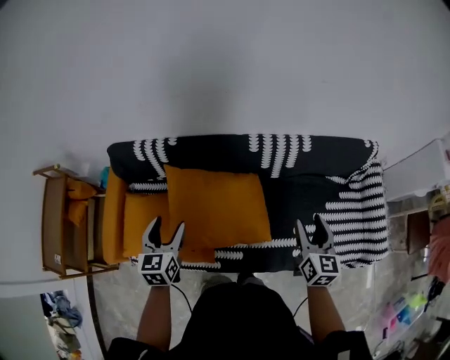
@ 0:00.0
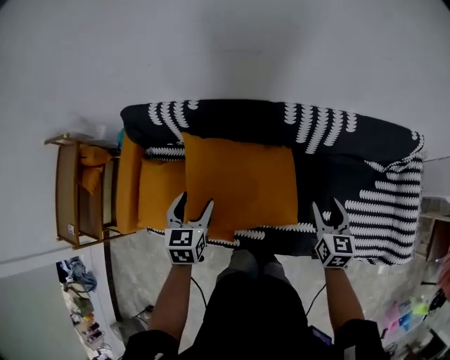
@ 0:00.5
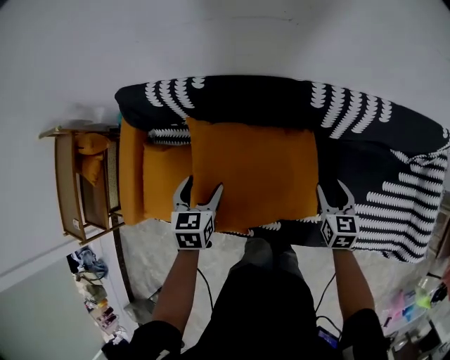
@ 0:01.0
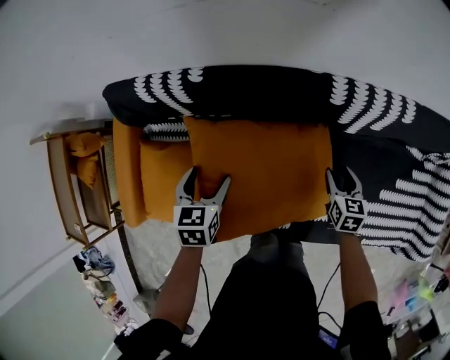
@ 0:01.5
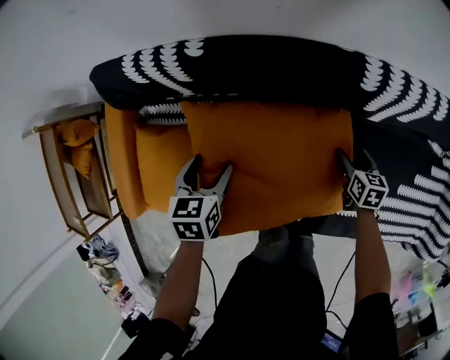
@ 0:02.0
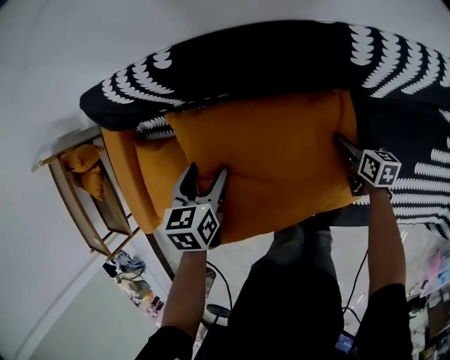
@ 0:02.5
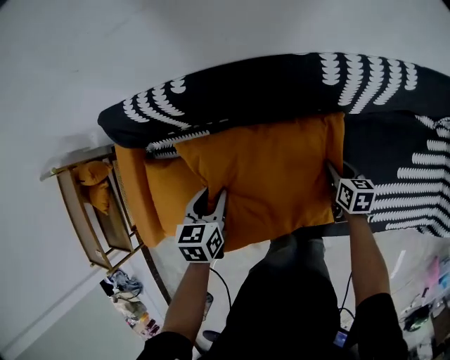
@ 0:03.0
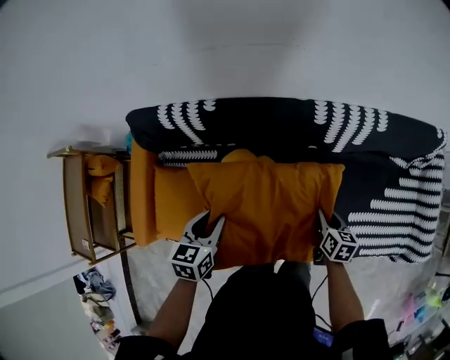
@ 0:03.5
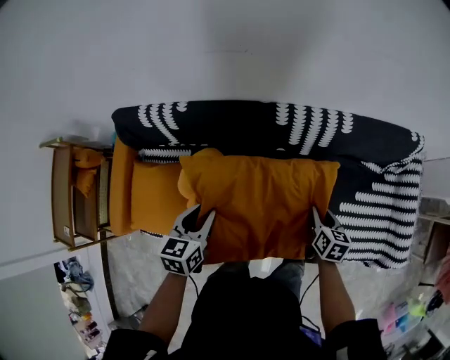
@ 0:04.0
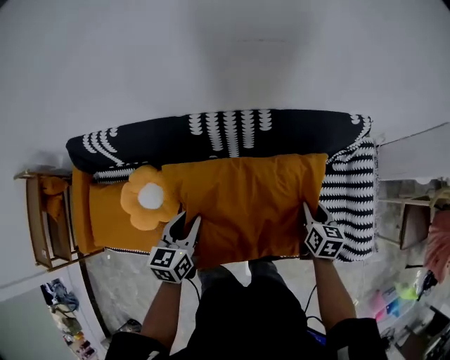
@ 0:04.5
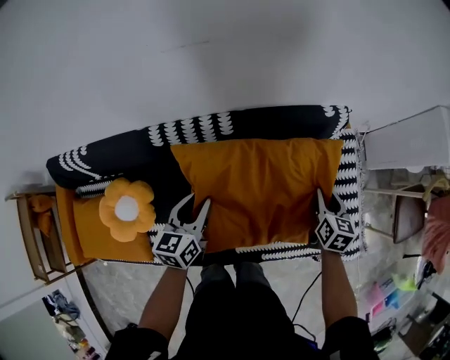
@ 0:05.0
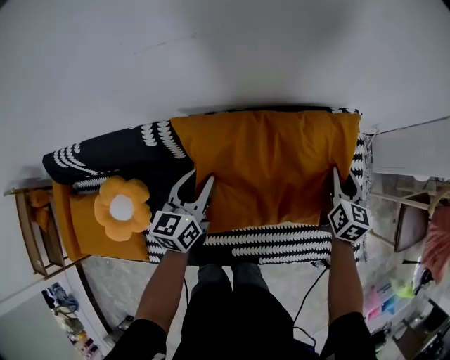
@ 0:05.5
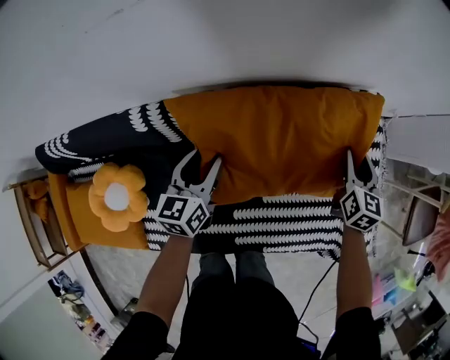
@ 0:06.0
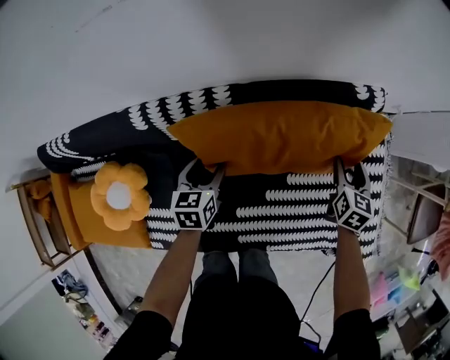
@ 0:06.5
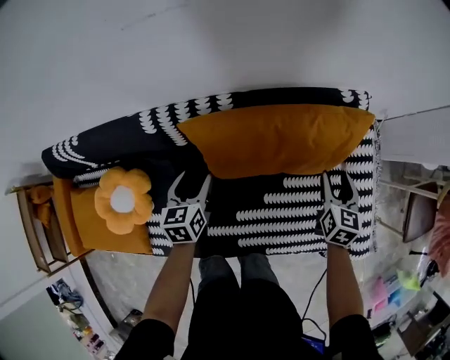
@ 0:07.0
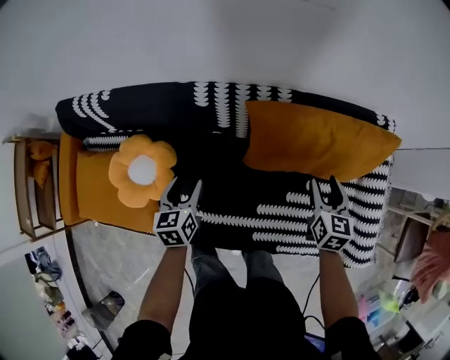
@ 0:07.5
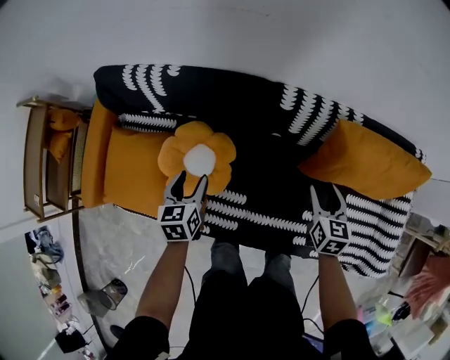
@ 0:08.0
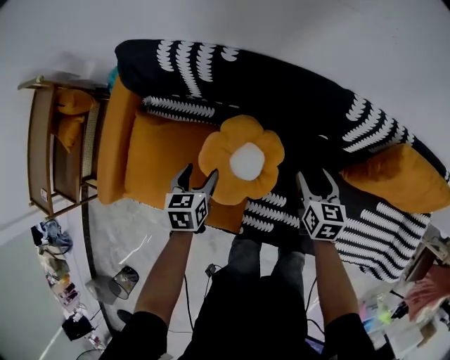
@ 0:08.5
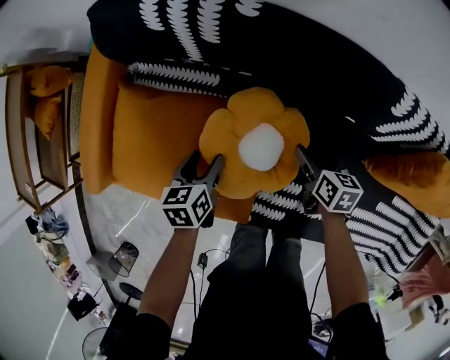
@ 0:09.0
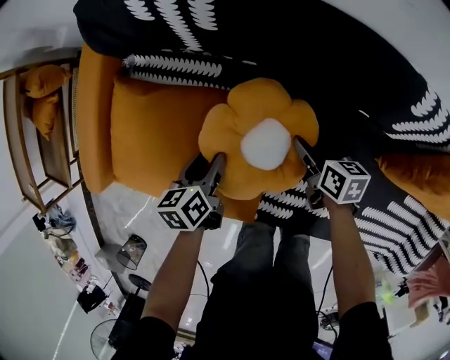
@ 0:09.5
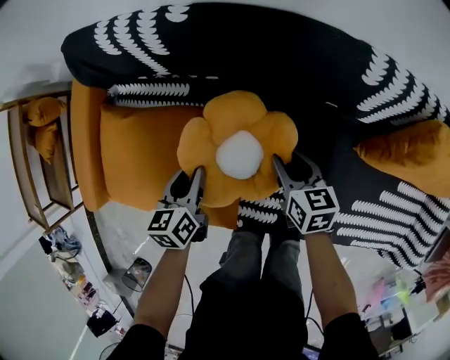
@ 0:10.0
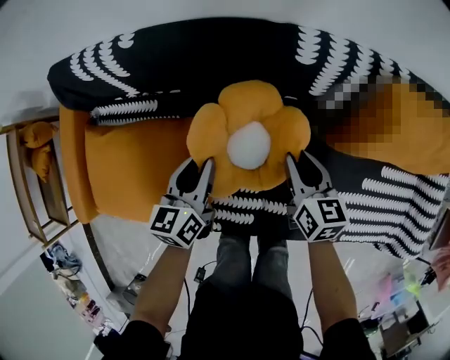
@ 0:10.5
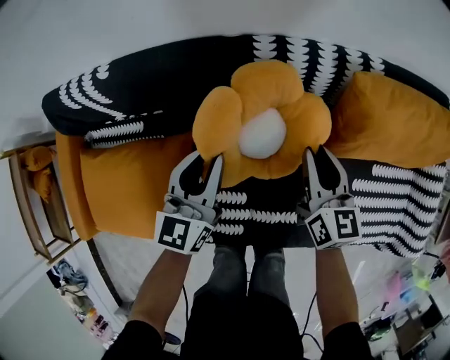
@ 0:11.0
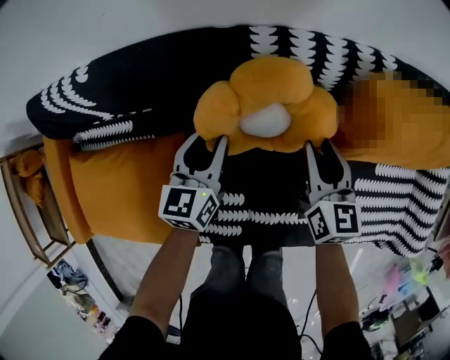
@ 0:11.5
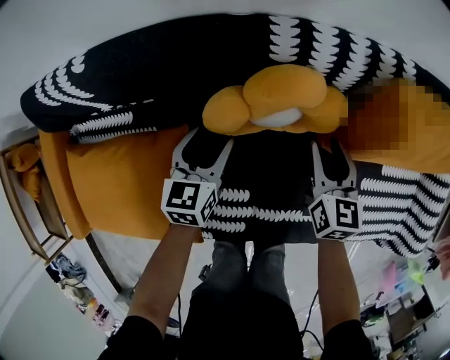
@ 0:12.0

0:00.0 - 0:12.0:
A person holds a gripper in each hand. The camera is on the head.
0:00.0 - 0:02.0: The right gripper heads downward, covering roughly 40 cm, and tilts its fingers approximately 30 degrees downward. Meanwhile the left gripper is displaced downward and forward by some 30 cm, and points its fingers roughly 30 degrees further downward.
0:02.0 - 0:04.0: The right gripper shifts about 25 cm upward, backward and to the right, and closes. The left gripper goes about 25 cm upward, to the right and backward, rotates some 20 degrees, and closes.
0:04.0 - 0:06.0: The pair of grippers is taken to the right and forward, approximately 50 cm. The right gripper changes its angle by some 30 degrees.
0:06.0 - 0:08.0: The two grippers travel together, roughly 50 cm. The left gripper changes its angle by about 30 degrees. The right gripper swivels roughly 30 degrees.
0:08.0 - 0:10.0: The right gripper moves to the left and downward, some 30 cm, and changes its angle by about 30 degrees; the left gripper heads downward and to the left, covering roughly 15 cm.
0:10.0 - 0:12.0: The right gripper goes upward and returns, some 10 cm each way, and turns by roughly 30 degrees, while the left gripper travels upward and back again, about 10 cm each way, changes its angle by approximately 30 degrees, and opens its fingers.

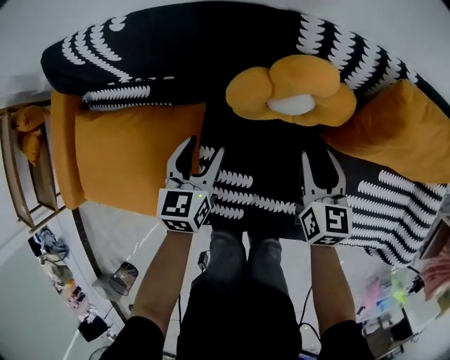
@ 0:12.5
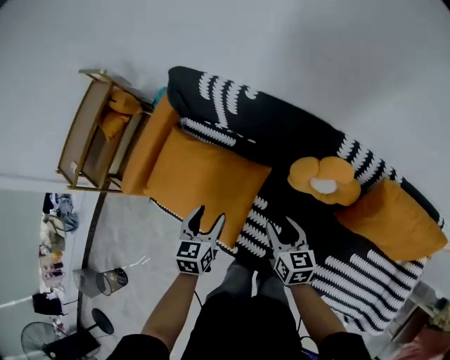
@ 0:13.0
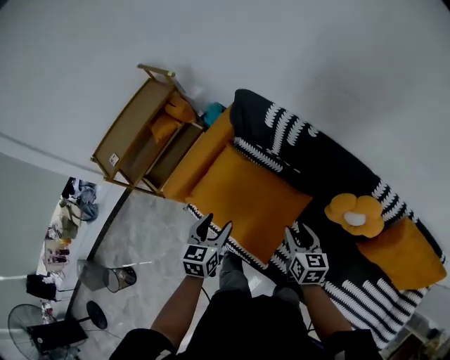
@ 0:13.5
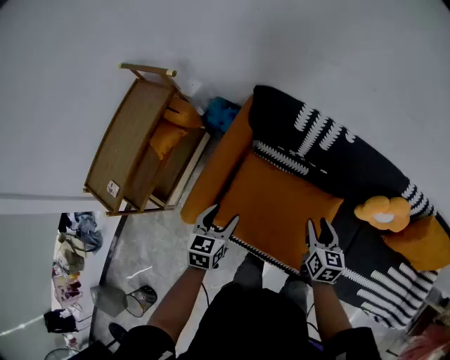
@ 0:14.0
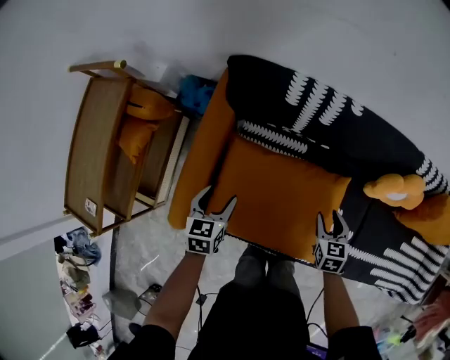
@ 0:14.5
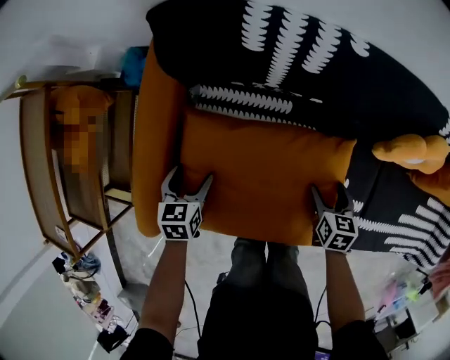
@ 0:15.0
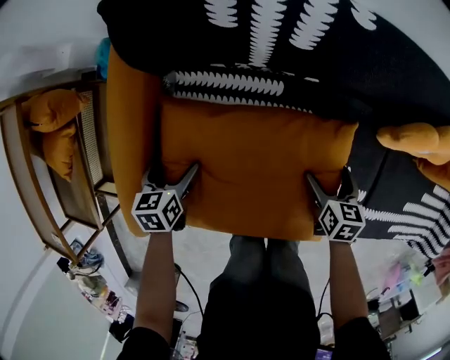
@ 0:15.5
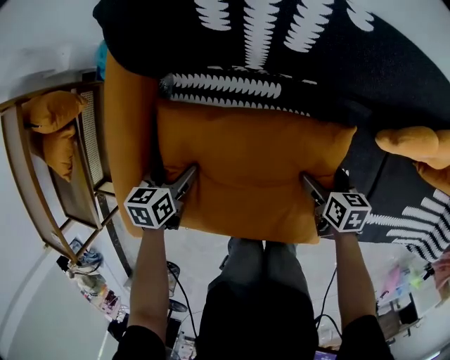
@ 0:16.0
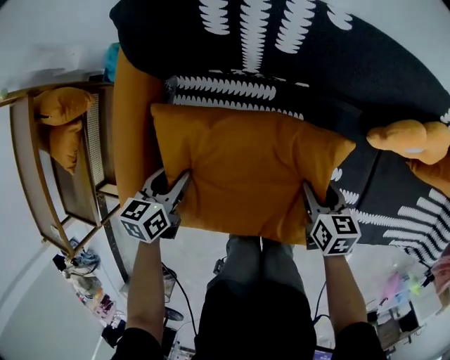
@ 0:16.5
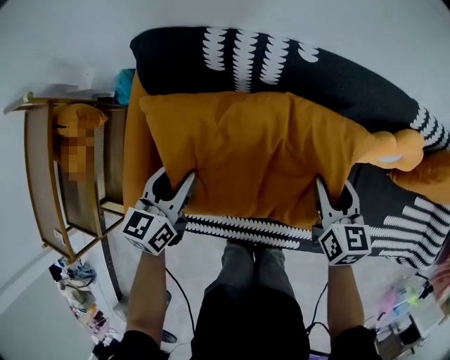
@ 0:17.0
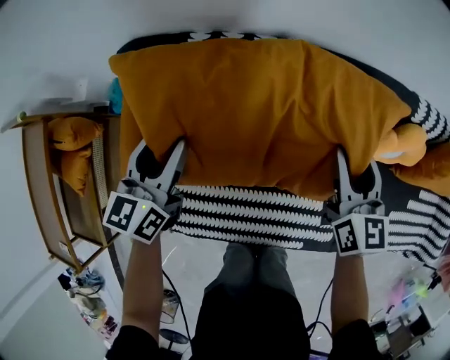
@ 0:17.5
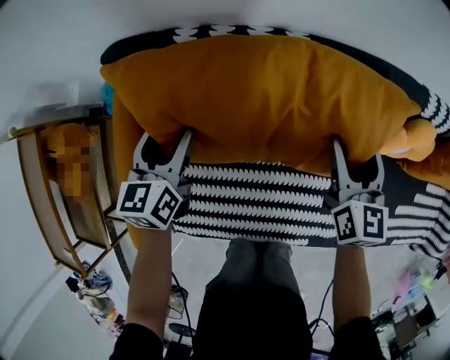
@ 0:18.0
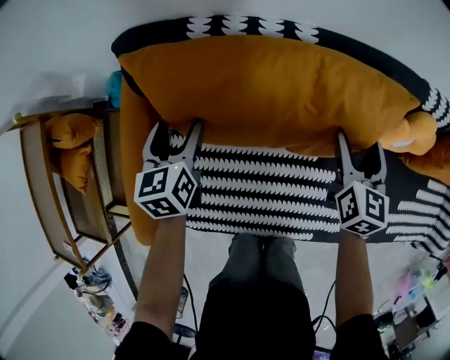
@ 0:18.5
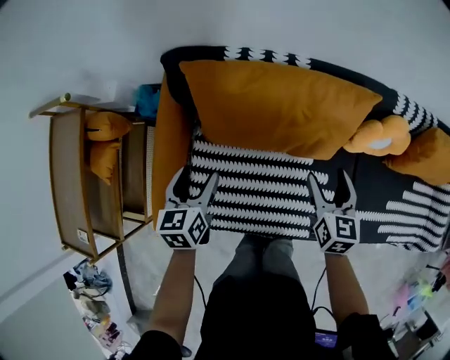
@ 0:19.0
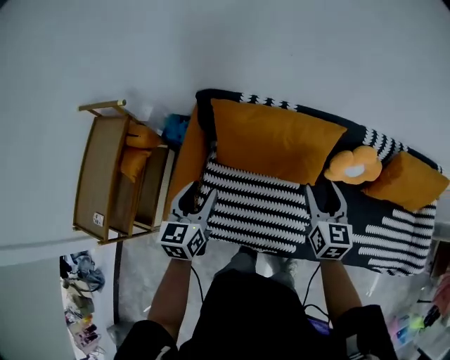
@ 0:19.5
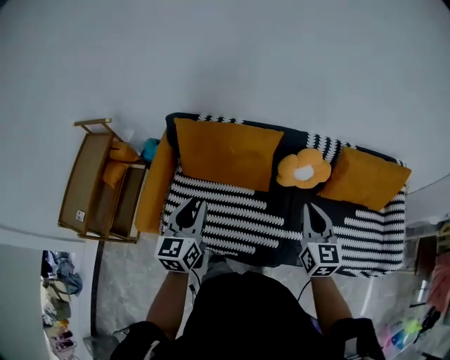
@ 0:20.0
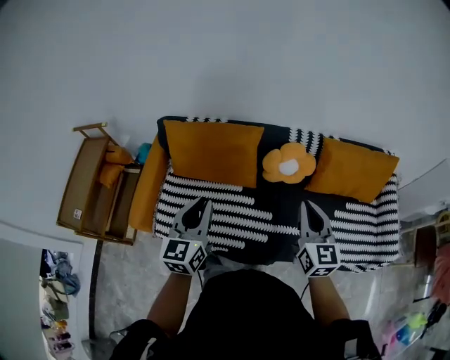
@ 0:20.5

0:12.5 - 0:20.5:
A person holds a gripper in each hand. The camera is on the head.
0:12.5 - 0:14.5: The two grippers travel together, approximately 50 cm. The right gripper turns by some 20 degrees.
0:14.5 - 0:16.5: Both grippers travel together downward, approximately 10 cm. The right gripper rotates approximately 20 degrees, and opens, then closes again.
0:16.5 - 0:18.5: Both grippers move forward and upward, some 20 cm. The left gripper turns by approximately 30 degrees, and opens up. The right gripper turns by about 40 degrees.
0:18.5 - 0:20.5: Both grippers move upward, backward and to the right, some 50 cm. The left gripper rotates about 30 degrees, and closes up; the right gripper swivels roughly 30 degrees, and closes its fingers.

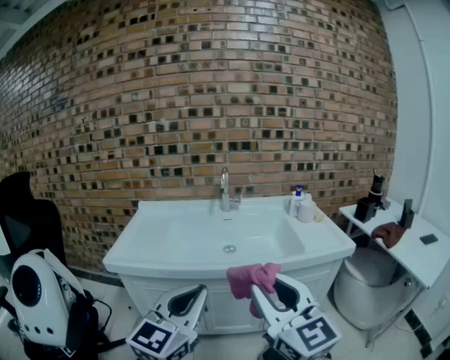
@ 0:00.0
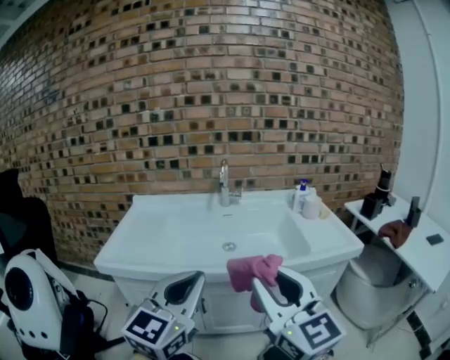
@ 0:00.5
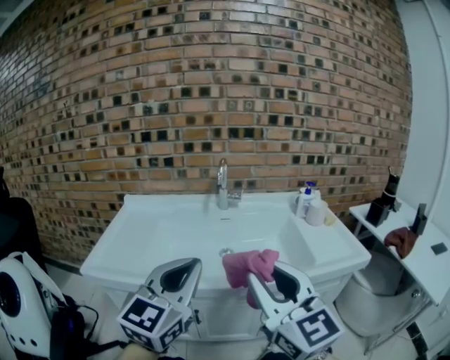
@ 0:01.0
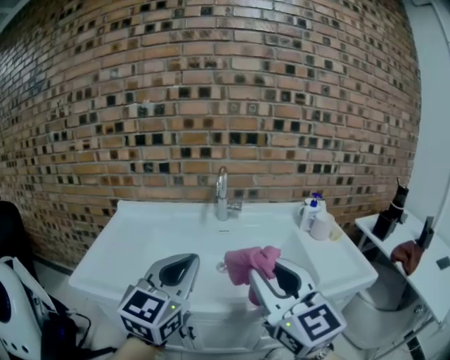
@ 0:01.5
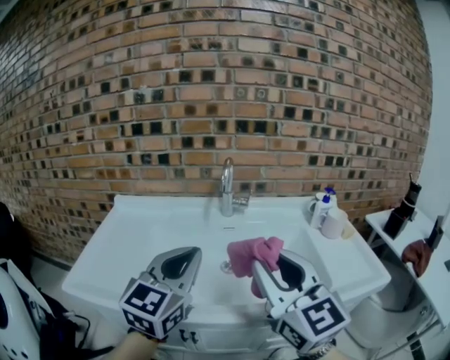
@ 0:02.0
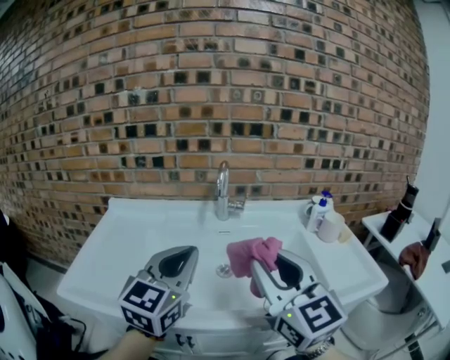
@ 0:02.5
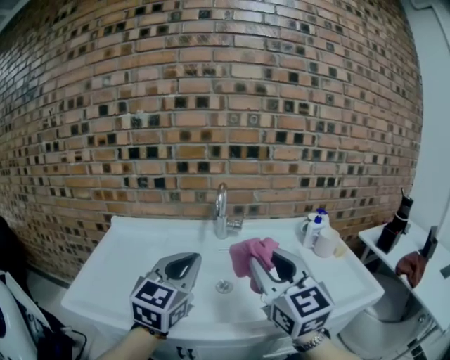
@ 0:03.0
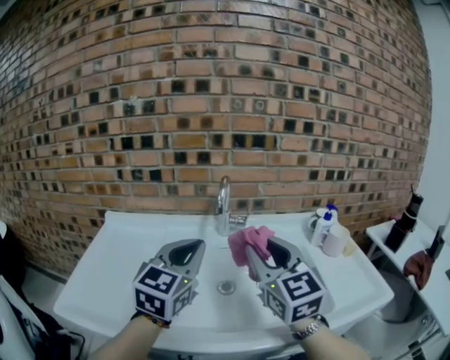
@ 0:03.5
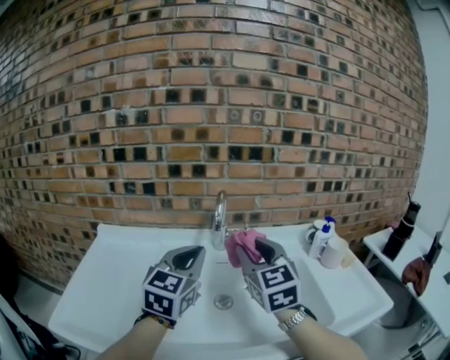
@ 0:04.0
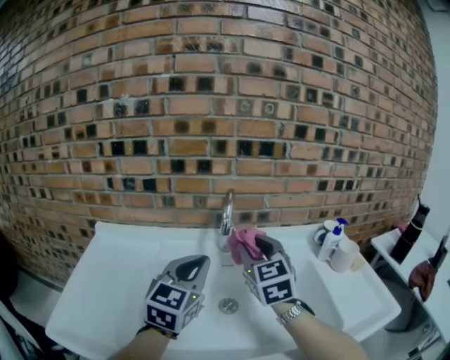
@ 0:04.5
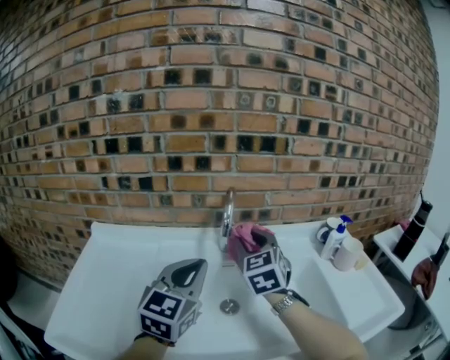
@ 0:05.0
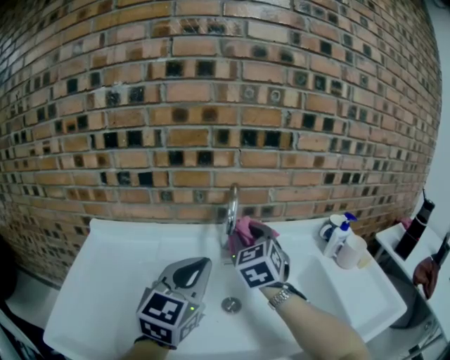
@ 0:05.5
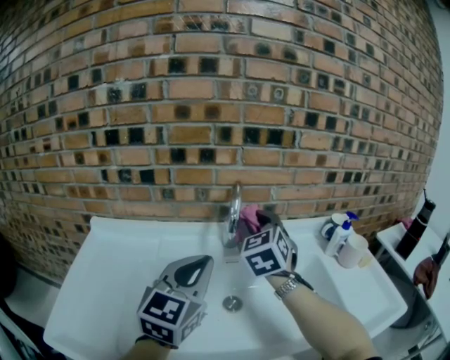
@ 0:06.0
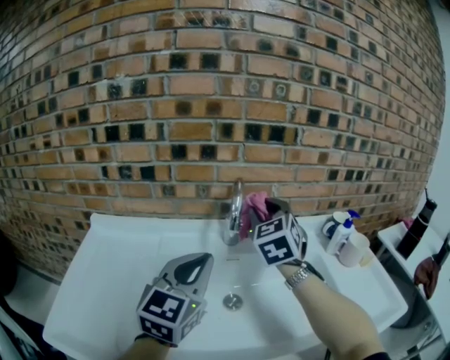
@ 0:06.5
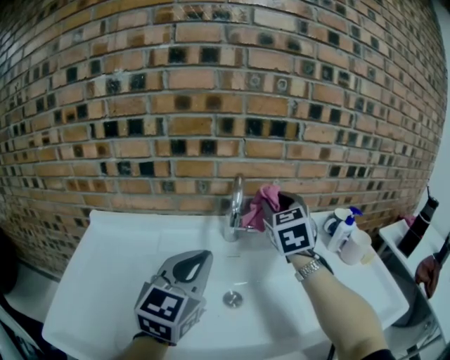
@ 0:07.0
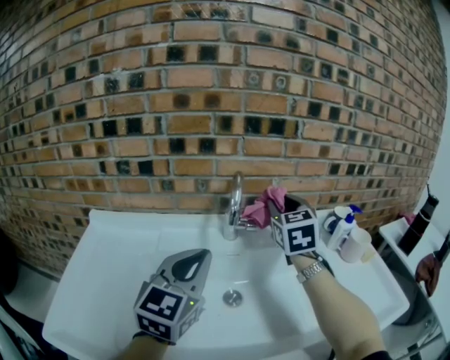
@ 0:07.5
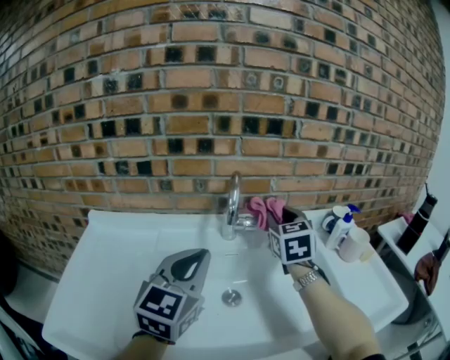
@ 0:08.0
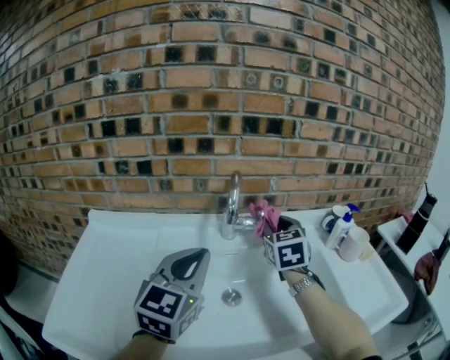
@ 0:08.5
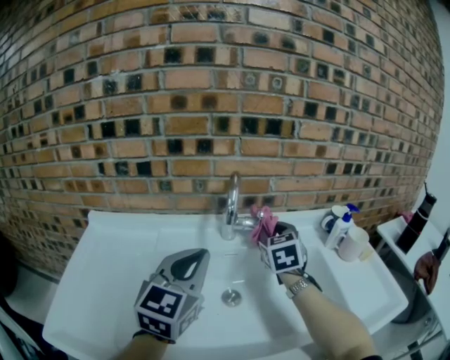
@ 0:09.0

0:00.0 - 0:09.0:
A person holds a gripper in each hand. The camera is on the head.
0:00.0 - 0:02.0: Both grippers move forward, about 30 cm.
0:02.0 - 0:04.5: The right gripper is displaced forward by some 25 cm, and rotates roughly 20 degrees; the left gripper is displaced forward by some 20 cm.
0:04.5 - 0:07.0: The right gripper travels forward by some 10 cm.
0:07.0 - 0:09.0: The right gripper shifts roughly 10 cm downward.
